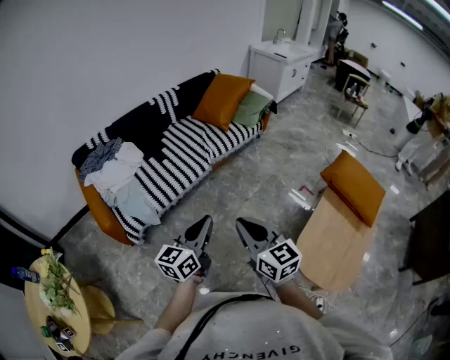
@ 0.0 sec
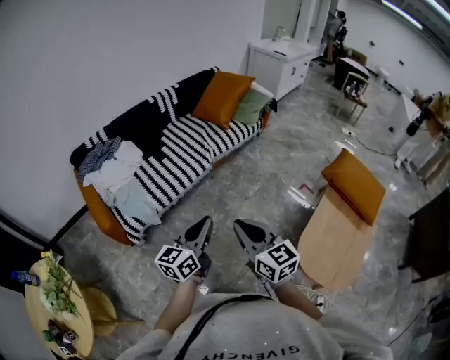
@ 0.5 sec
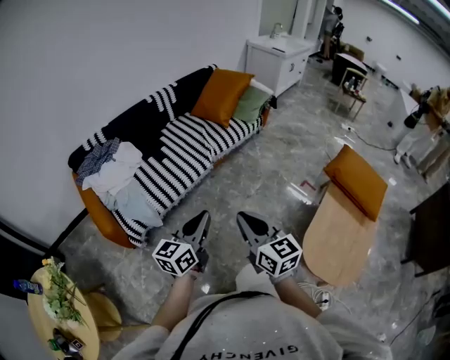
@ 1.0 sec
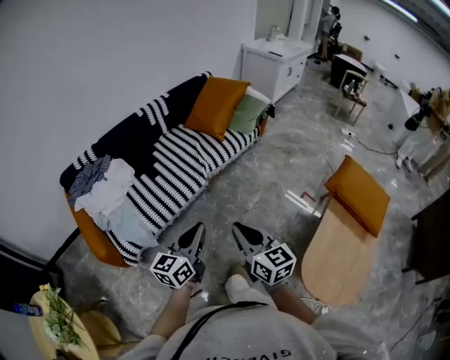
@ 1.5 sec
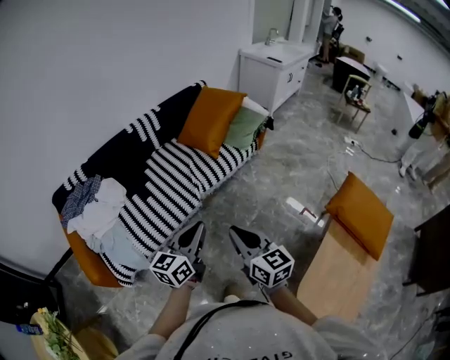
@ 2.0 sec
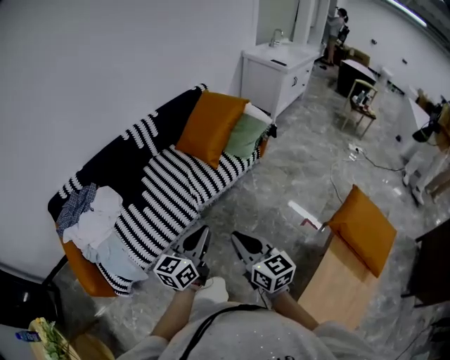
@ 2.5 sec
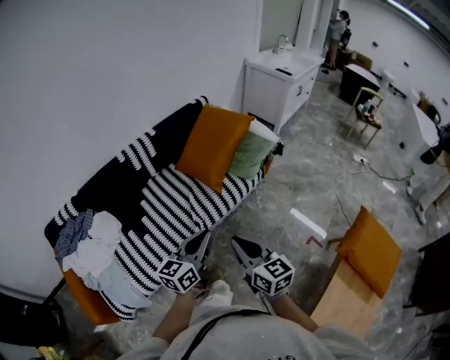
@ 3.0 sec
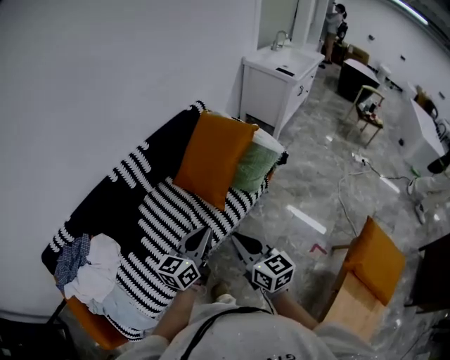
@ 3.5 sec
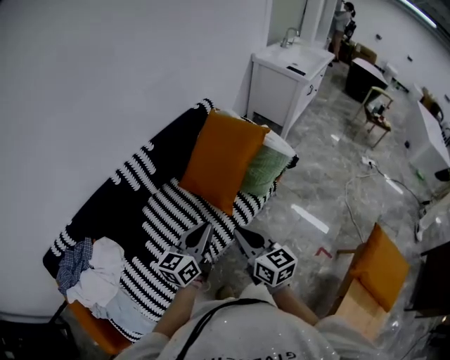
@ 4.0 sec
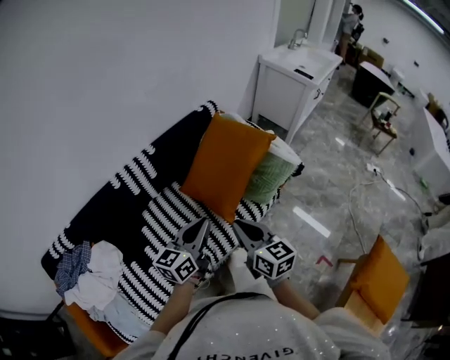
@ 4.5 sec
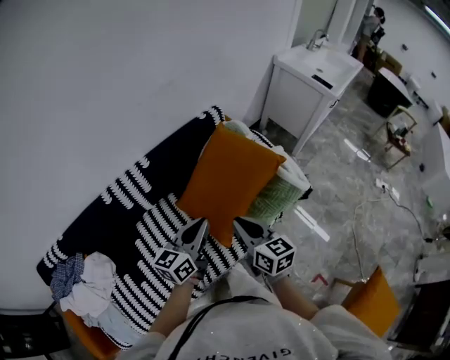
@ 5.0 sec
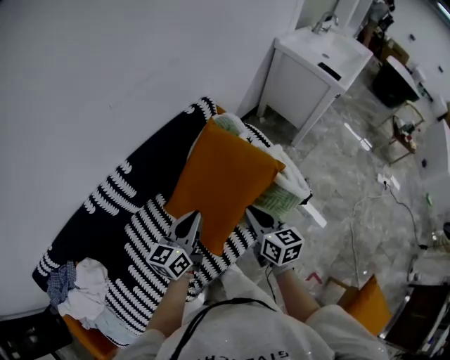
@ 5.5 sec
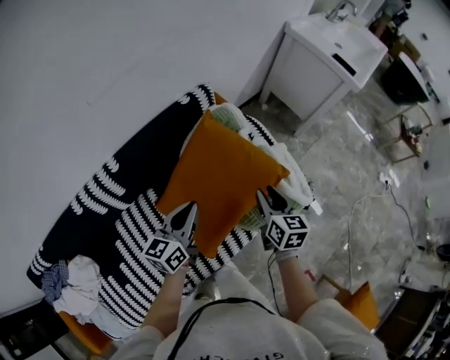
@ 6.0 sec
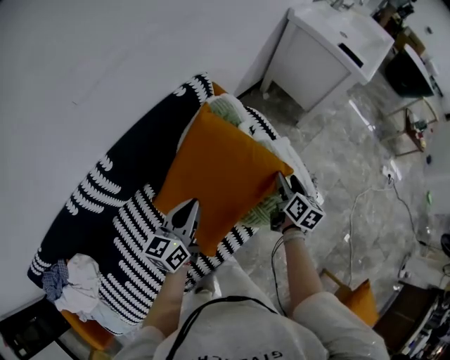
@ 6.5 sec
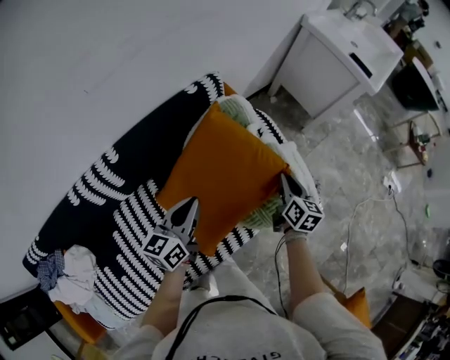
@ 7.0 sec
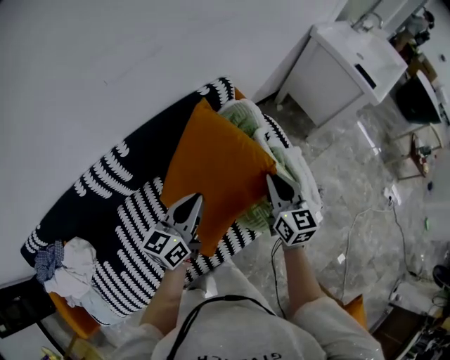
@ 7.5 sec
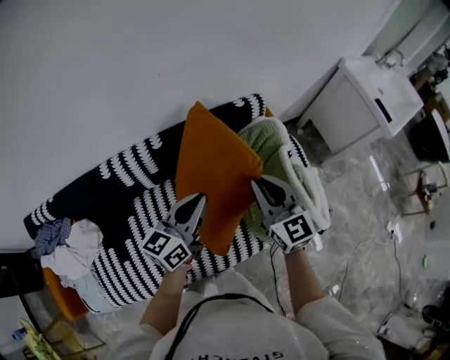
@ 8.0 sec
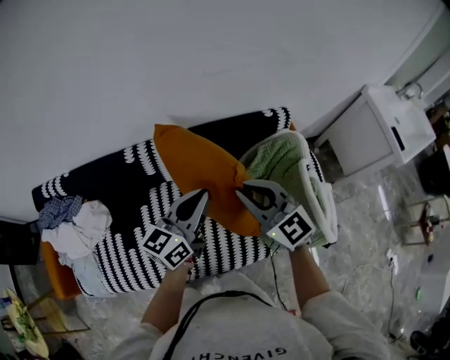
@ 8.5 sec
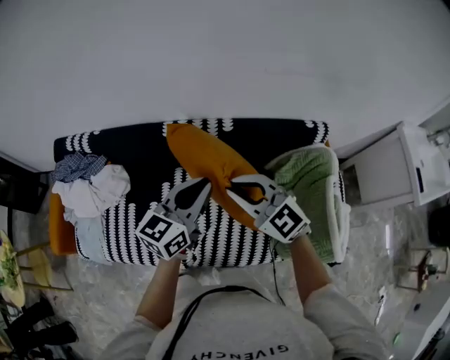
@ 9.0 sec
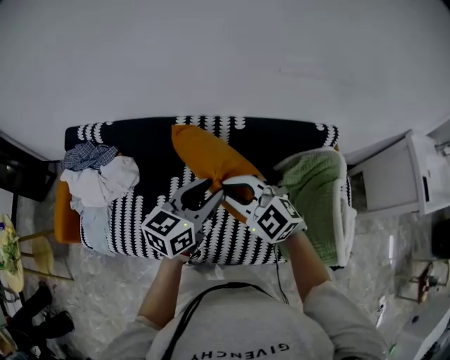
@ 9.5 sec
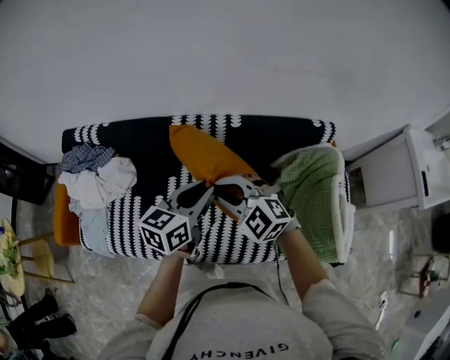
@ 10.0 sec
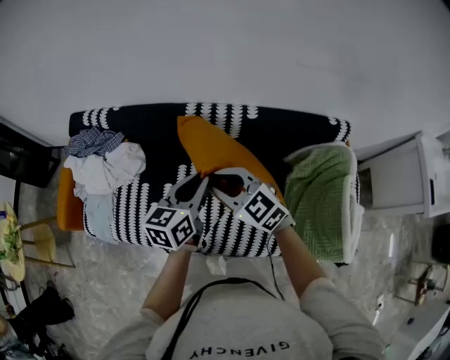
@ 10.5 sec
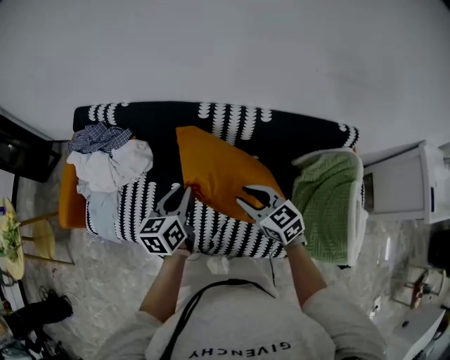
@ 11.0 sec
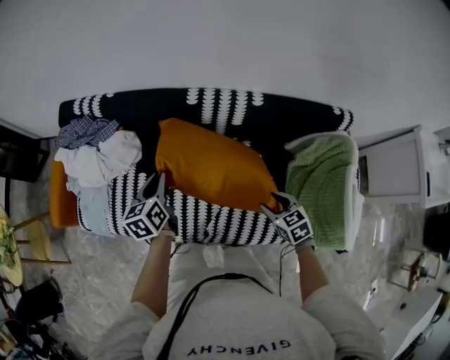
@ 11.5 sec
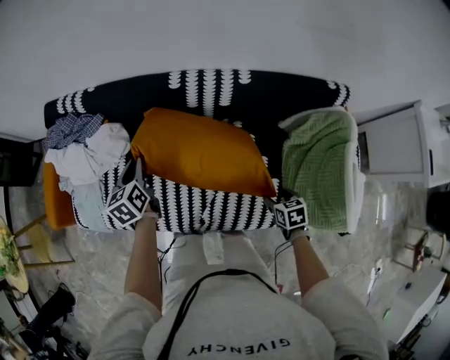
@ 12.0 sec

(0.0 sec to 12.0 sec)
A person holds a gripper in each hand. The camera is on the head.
0.0 sec - 2.0 sec: The grippers both shift forward by approximately 25 cm.
2.0 sec - 4.0 sec: Both grippers are carried forward, about 40 cm.
4.0 sec - 6.0 sec: The right gripper moves forward and to the right, roughly 50 cm, swivels roughly 20 degrees, and opens up. The left gripper is displaced forward by about 35 cm.
6.0 sec - 8.0 sec: The right gripper ends up roughly 20 cm from where it was, changes its angle by roughly 50 degrees, and opens, then closes again. The left gripper goes approximately 10 cm upward.
8.0 sec - 10.0 sec: The right gripper ends up about 30 cm from where it was, and swivels roughly 70 degrees. The left gripper shifts by some 20 cm, and swivels roughly 20 degrees.
10.0 sec - 12.0 sec: The left gripper is displaced to the left, downward and forward by roughly 30 cm, and rotates approximately 40 degrees; the right gripper heads downward, to the right and backward, covering roughly 35 cm, rotates around the line of its fingers by some 70 degrees, clockwise from behind, and opens up.

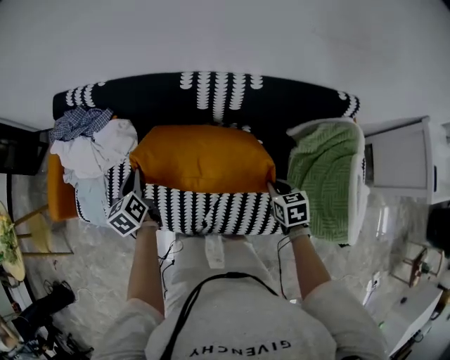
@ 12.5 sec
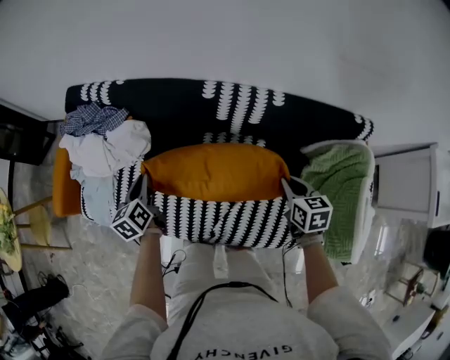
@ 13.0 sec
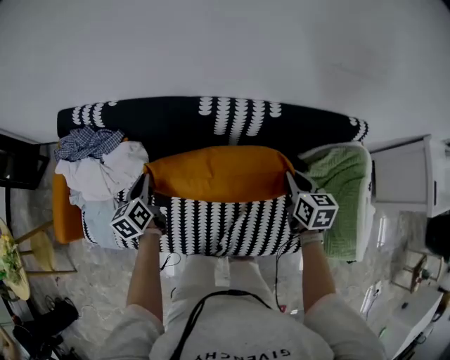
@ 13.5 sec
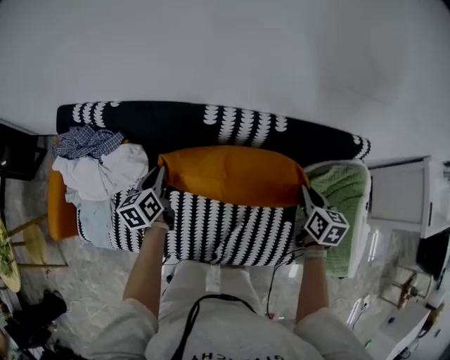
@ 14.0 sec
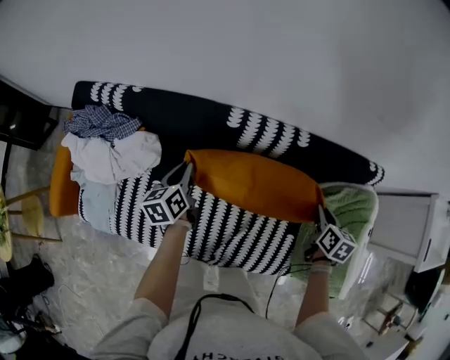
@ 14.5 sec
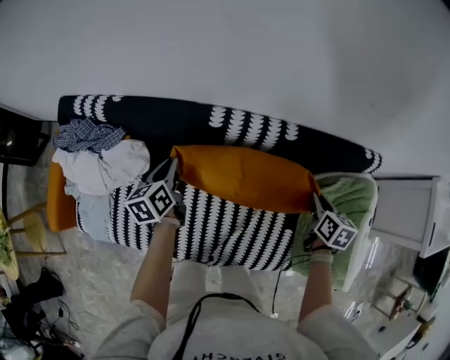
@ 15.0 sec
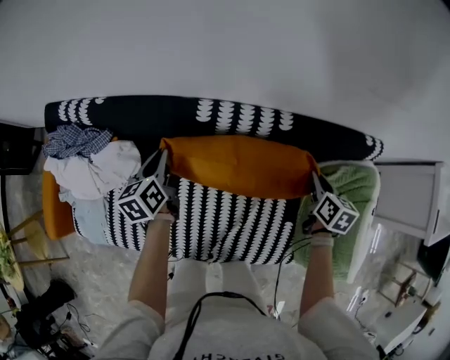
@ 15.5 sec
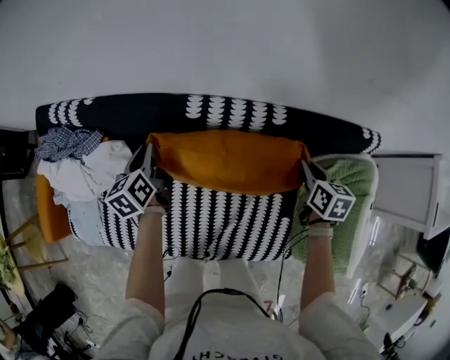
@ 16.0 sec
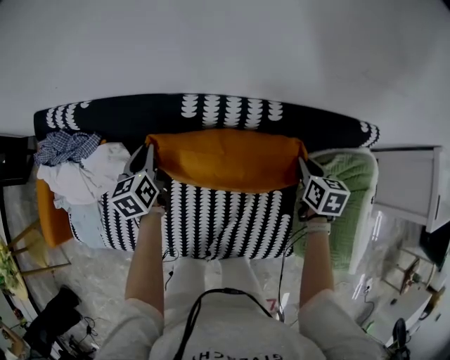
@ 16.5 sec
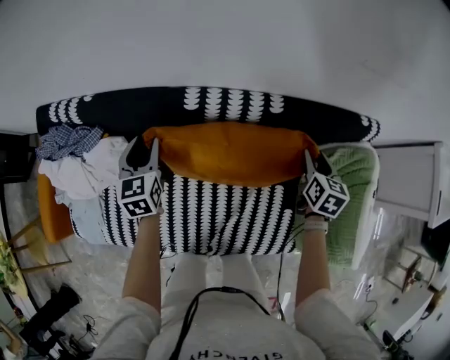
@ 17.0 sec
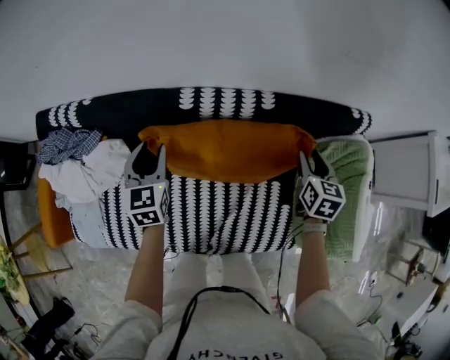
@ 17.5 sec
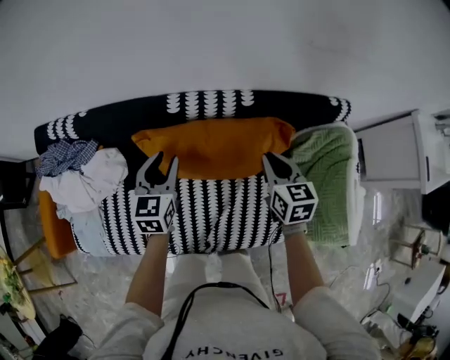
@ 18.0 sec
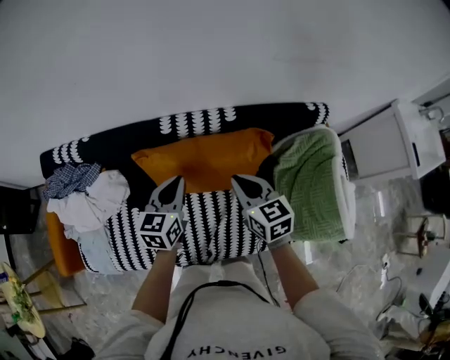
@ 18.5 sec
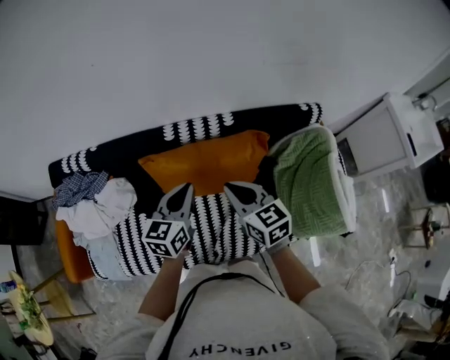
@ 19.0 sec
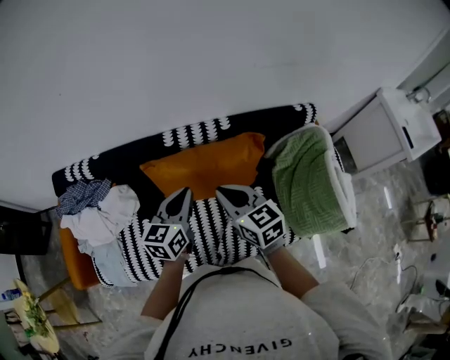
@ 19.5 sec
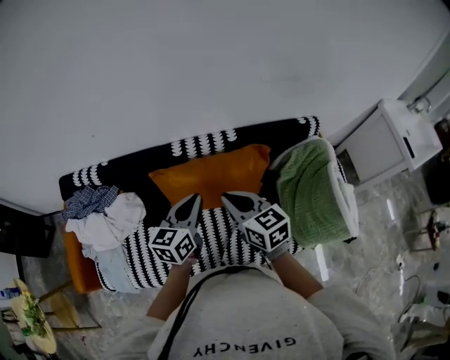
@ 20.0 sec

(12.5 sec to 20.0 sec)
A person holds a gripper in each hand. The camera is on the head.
12.5 sec - 14.5 sec: The right gripper travels forward, upward and to the right by some 15 cm, and rotates about 30 degrees, while the left gripper heads forward and to the right, covering roughly 15 cm.
14.5 sec - 16.5 sec: The two grippers go about 5 cm forward.
16.5 sec - 18.0 sec: The left gripper heads to the right, upward and backward, covering about 15 cm, turns by approximately 30 degrees, and opens up, while the right gripper is displaced upward, backward and to the left by roughly 15 cm, and opens and closes again.
18.0 sec - 20.0 sec: The left gripper travels upward, backward and to the right by approximately 15 cm, turns by about 20 degrees, and closes; the right gripper goes some 20 cm upward, to the left and backward.

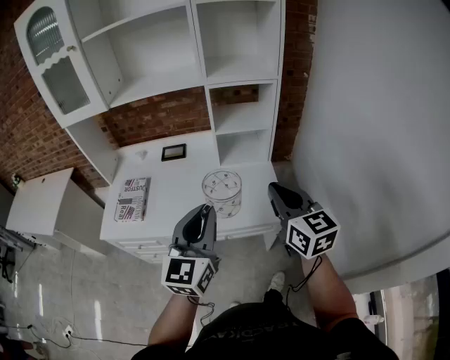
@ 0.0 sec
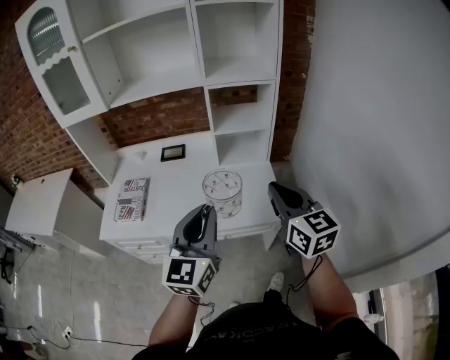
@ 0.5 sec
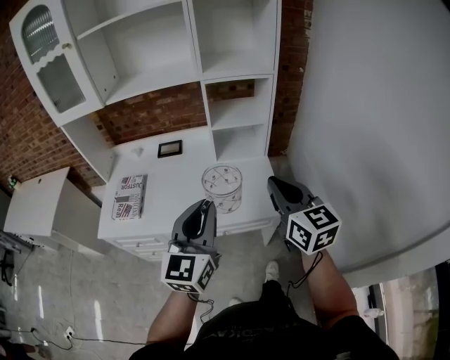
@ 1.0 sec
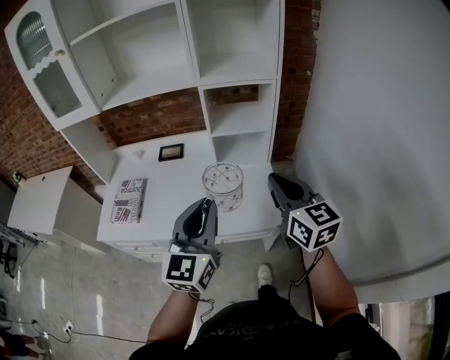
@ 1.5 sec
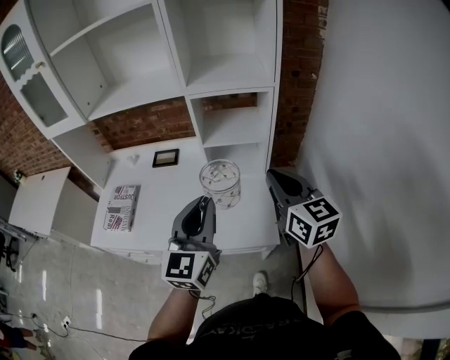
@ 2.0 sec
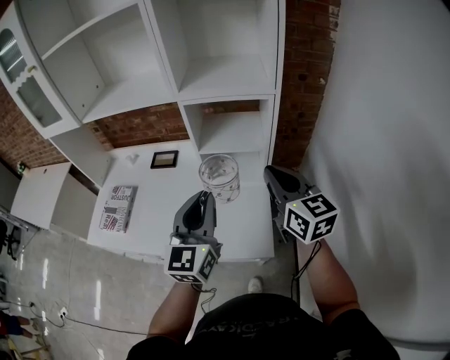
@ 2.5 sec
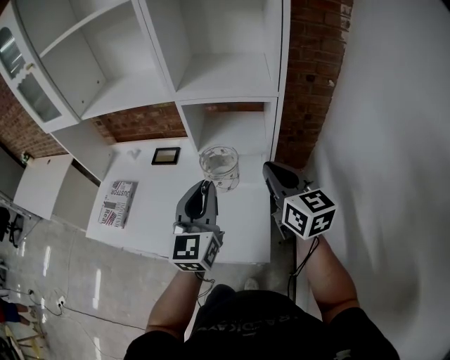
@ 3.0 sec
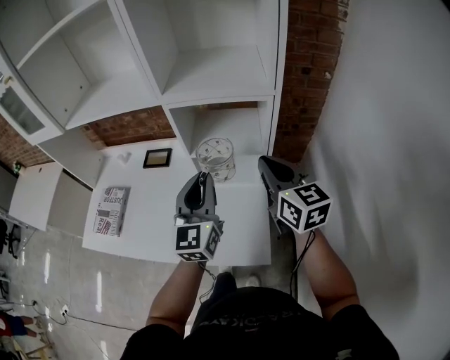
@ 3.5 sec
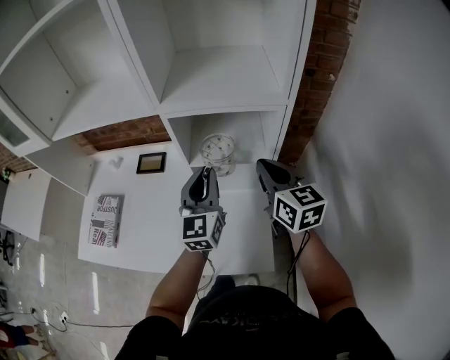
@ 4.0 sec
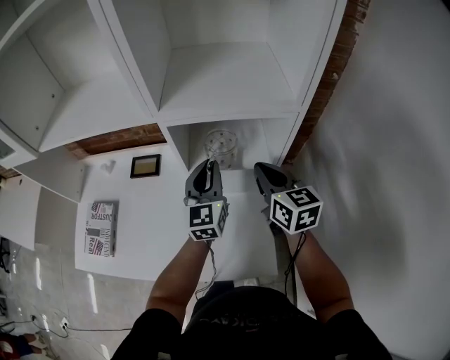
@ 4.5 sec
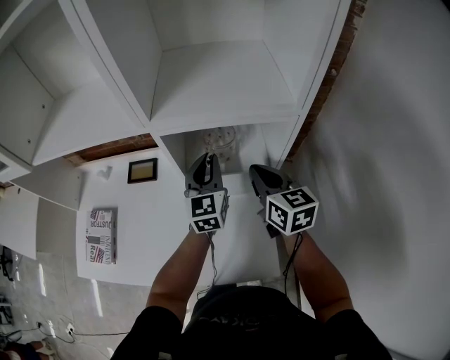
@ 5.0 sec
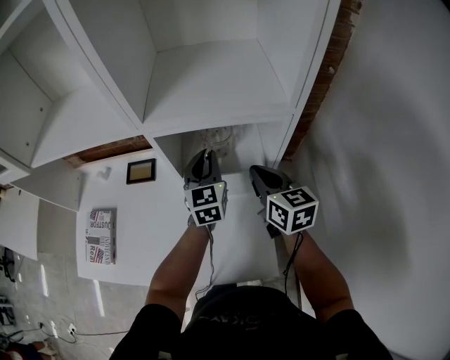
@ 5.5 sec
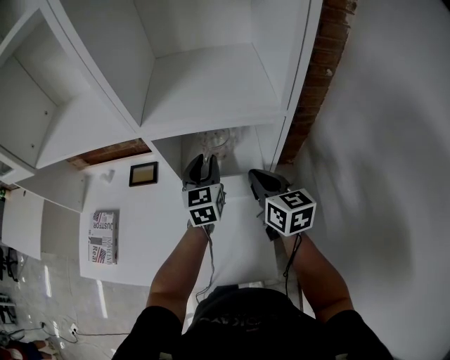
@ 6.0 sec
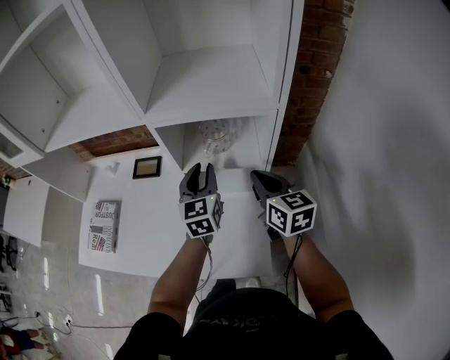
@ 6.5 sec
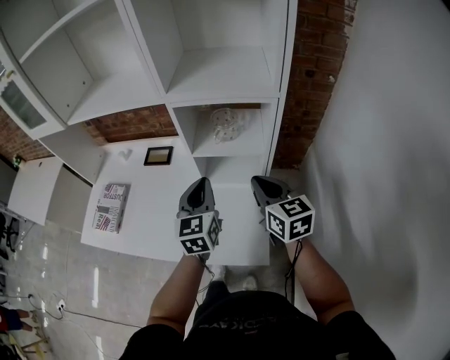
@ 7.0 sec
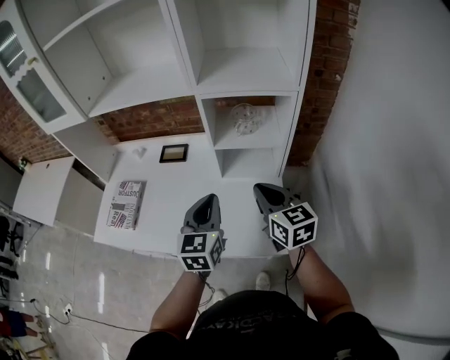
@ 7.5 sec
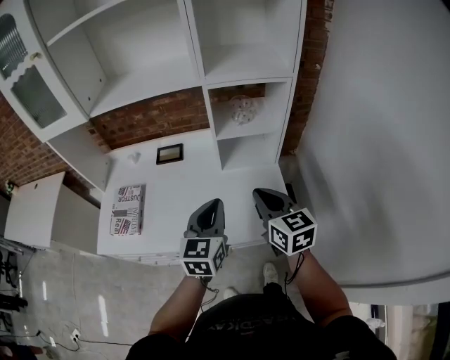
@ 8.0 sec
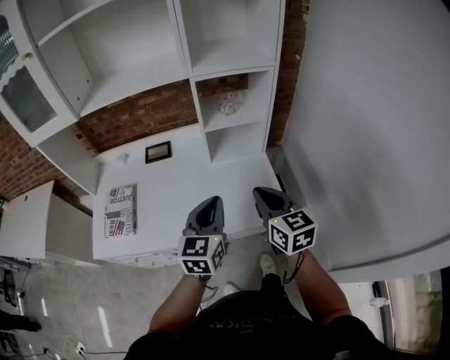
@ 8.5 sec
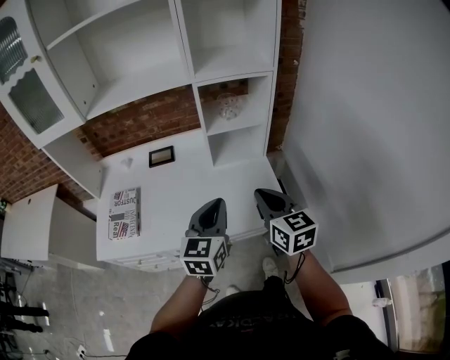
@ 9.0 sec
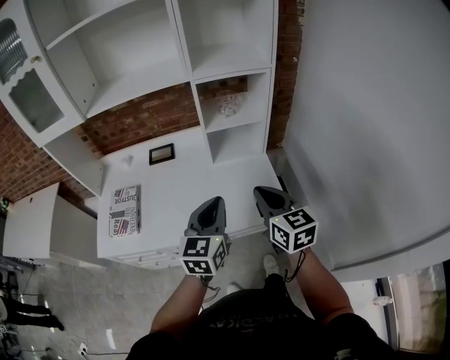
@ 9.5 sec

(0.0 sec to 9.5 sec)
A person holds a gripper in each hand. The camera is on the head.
0.0 sec - 2.0 sec: Both grippers move forward and to the right, approximately 15 cm.
2.0 sec - 4.0 sec: The two grippers go roughly 25 cm forward.
4.0 sec - 5.5 sec: The right gripper goes about 10 cm downward and forward. The left gripper is displaced forward and downward by approximately 15 cm.
5.5 sec - 7.5 sec: The two grippers go roughly 25 cm backward and to the left.
7.5 sec - 9.5 sec: Both grippers travel together backward, about 15 cm.
